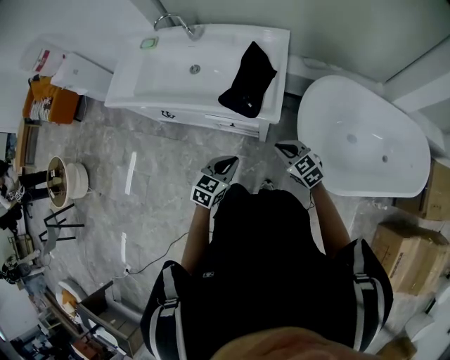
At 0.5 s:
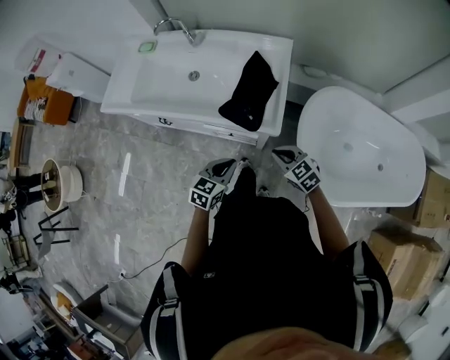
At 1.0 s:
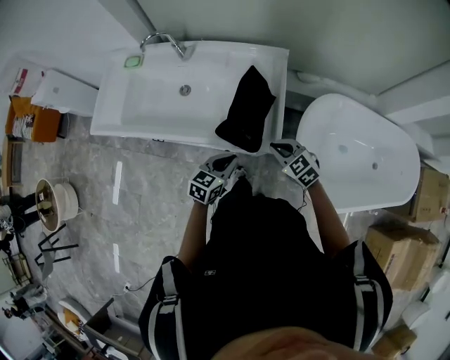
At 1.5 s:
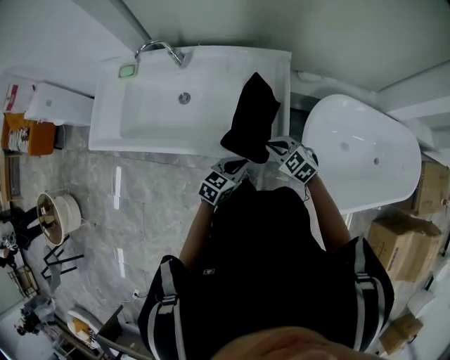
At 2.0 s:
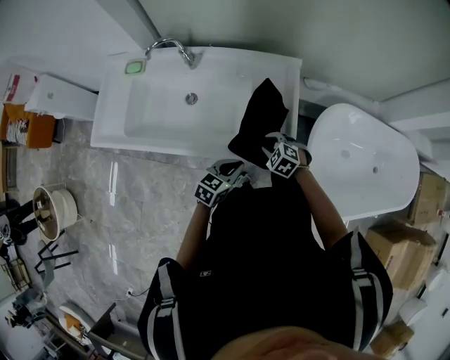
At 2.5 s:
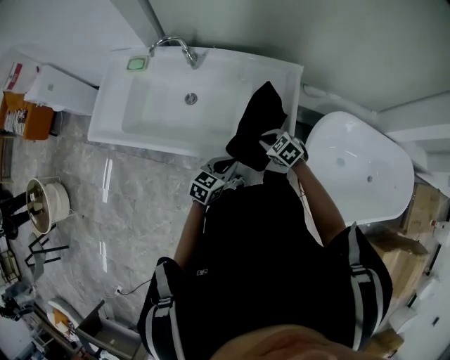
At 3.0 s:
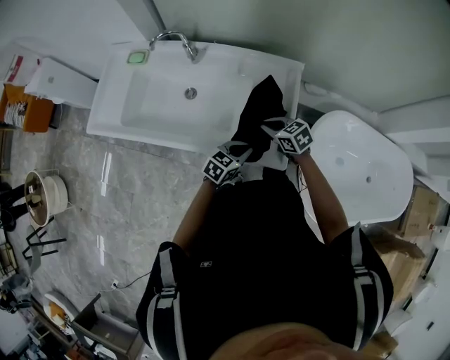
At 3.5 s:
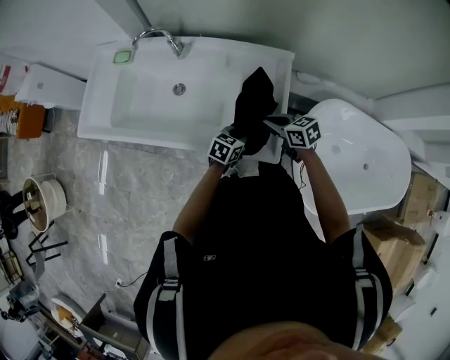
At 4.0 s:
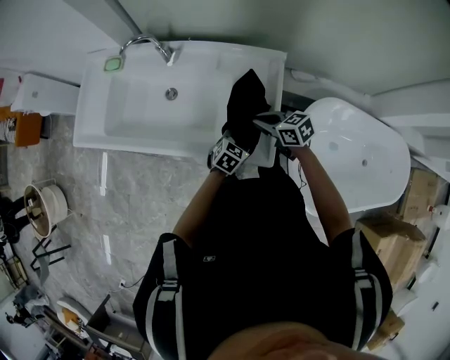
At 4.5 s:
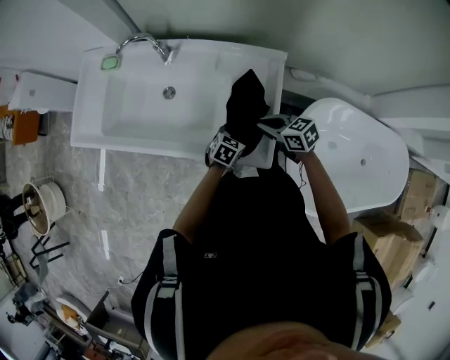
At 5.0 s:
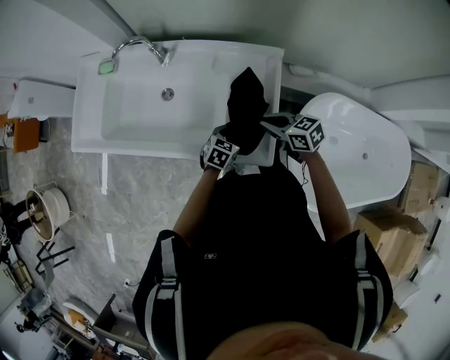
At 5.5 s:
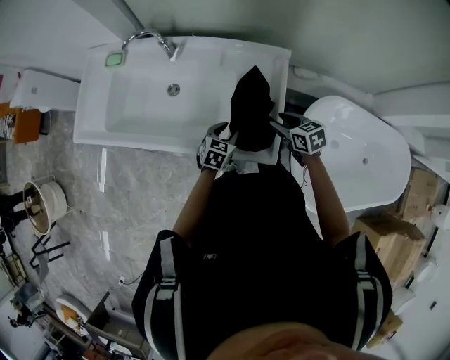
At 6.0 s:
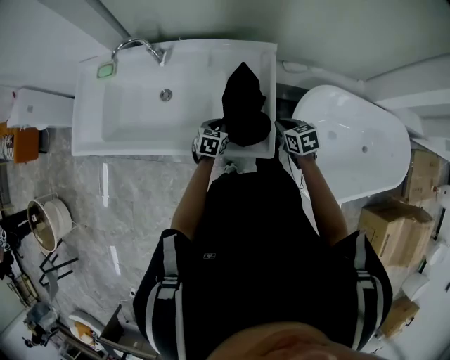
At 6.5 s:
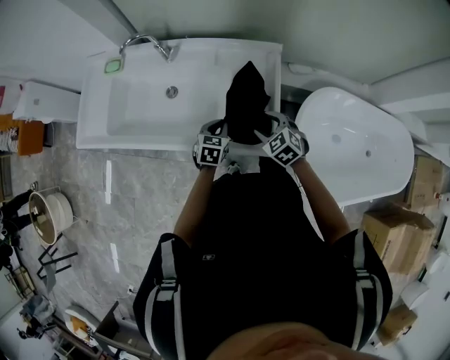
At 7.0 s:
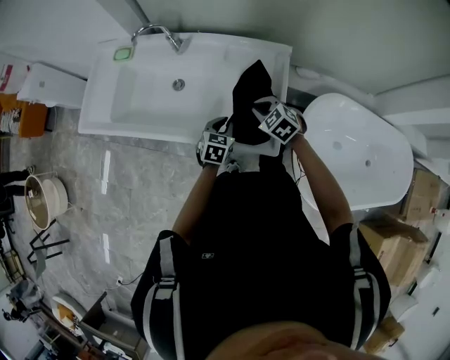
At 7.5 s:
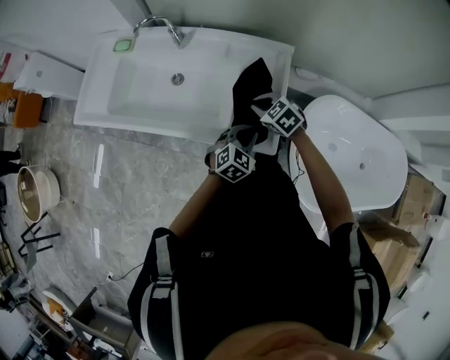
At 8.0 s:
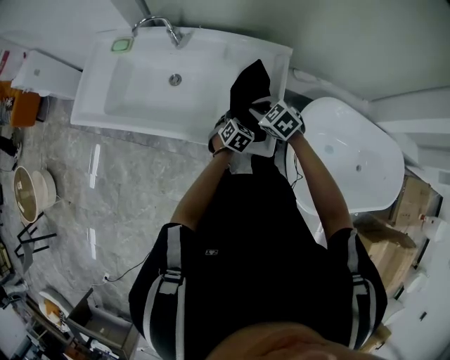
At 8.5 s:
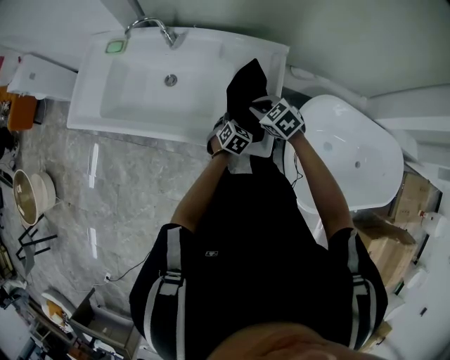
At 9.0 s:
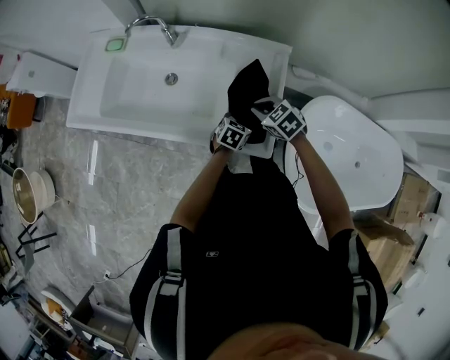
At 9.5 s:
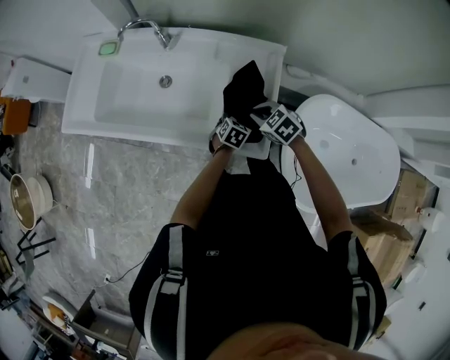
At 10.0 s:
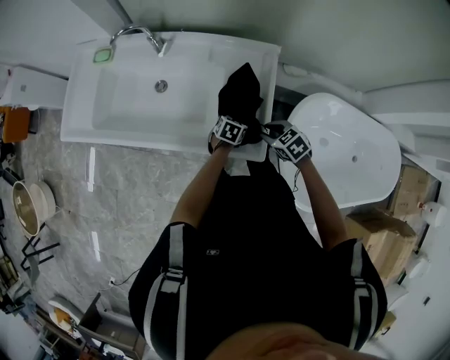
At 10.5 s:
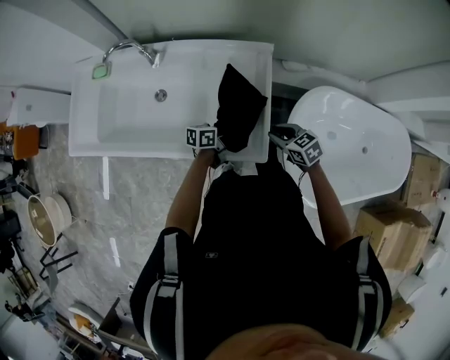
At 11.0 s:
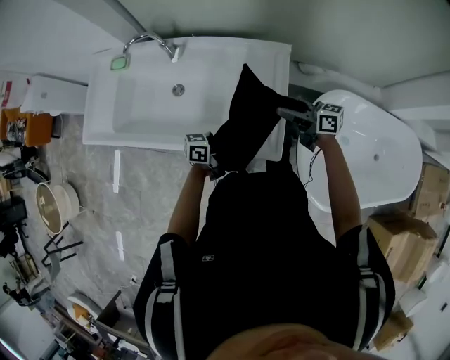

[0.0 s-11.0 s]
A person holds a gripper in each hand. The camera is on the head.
0.0 to 2.0 s: The right gripper is displaced forward, downward and to the left by some 25 cm, turns by roughly 30 degrees, and opens up. Meanwhile the left gripper is displaced forward by roughly 20 cm.
2.0 to 3.5 s: The left gripper travels forward, to the right and downward by some 15 cm. The right gripper moves upward and forward, about 10 cm, swivels some 50 degrees, and closes its fingers.
3.5 to 5.5 s: The right gripper goes about 5 cm to the right, and opens up; the left gripper opens up.
5.5 to 7.5 s: The right gripper moves to the left, about 10 cm, swivels approximately 30 degrees, and closes. Meanwhile the left gripper heads upward, backward and to the right, covering about 10 cm, turns by roughly 20 degrees, and closes up.
7.5 to 9.0 s: The left gripper heads downward and forward, covering about 15 cm, changes its angle by some 30 degrees, and opens.
9.0 to 11.0 s: The left gripper is displaced upward by roughly 15 cm, and angles its fingers upward, by roughly 50 degrees. Meanwhile the right gripper changes place by roughly 10 cm, angles its fingers upward, by some 40 degrees, and opens its fingers.

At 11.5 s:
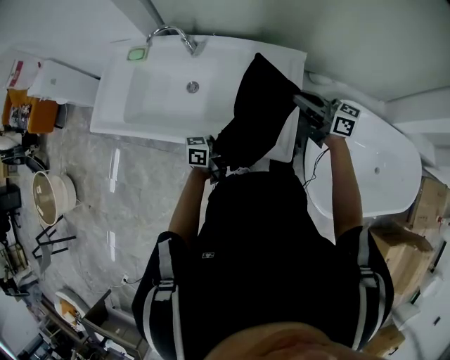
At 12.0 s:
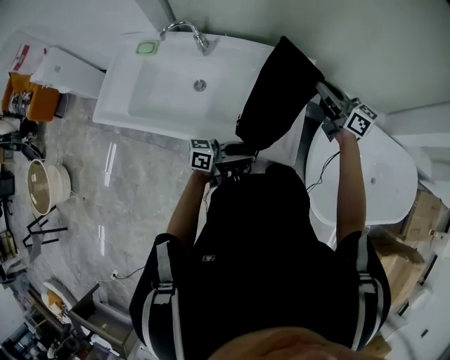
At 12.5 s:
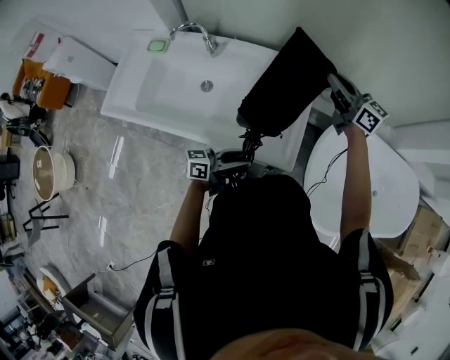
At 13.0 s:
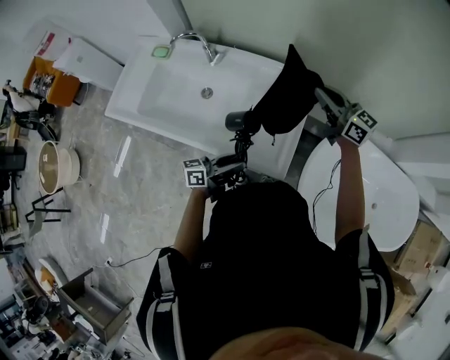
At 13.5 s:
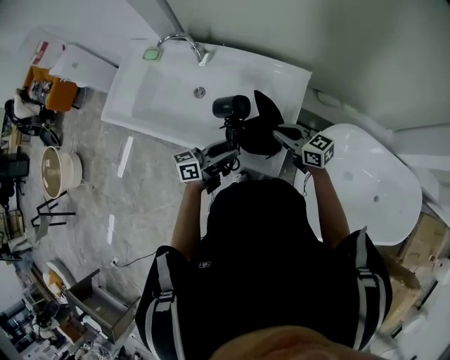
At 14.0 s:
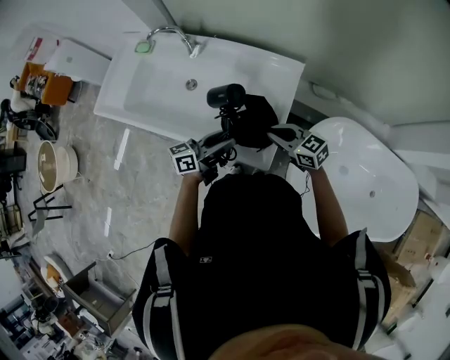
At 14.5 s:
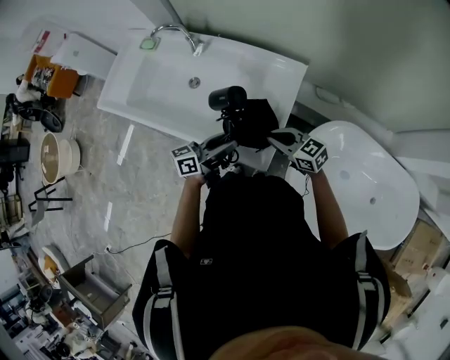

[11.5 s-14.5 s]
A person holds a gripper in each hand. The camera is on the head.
11.5 to 13.0 s: The right gripper shifts by about 10 cm, while the left gripper rotates roughly 20 degrees.
13.0 to 14.5 s: The right gripper heads downward and backward, covering roughly 25 cm, and rotates roughly 30 degrees; the left gripper shifts by about 5 cm.

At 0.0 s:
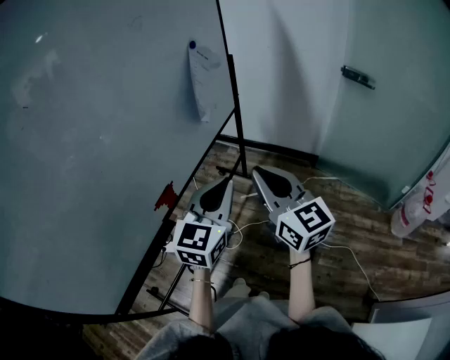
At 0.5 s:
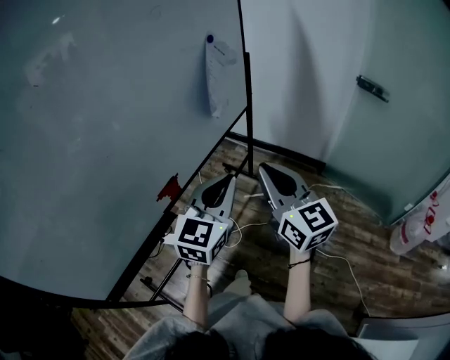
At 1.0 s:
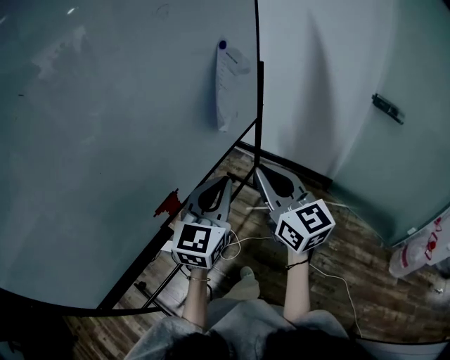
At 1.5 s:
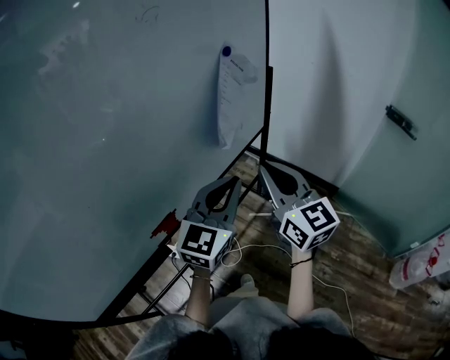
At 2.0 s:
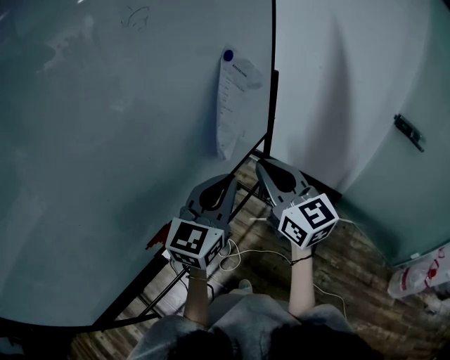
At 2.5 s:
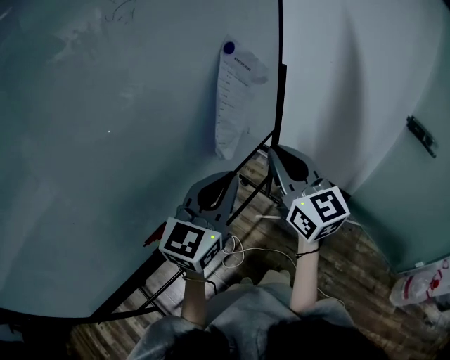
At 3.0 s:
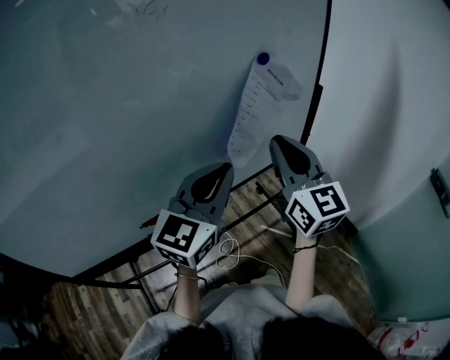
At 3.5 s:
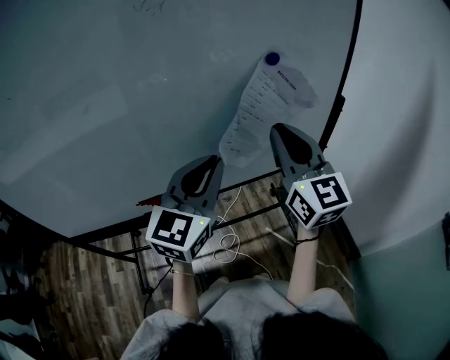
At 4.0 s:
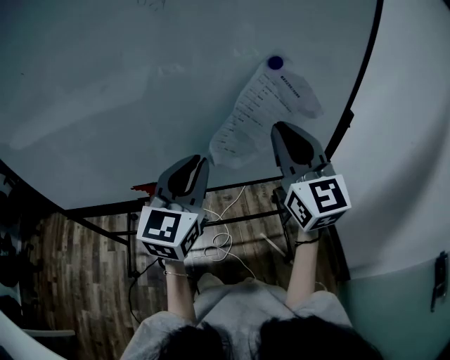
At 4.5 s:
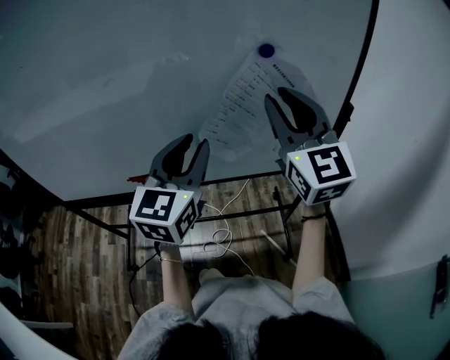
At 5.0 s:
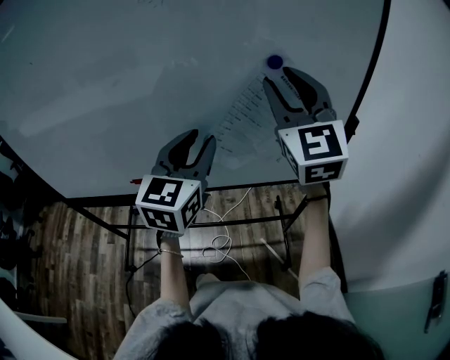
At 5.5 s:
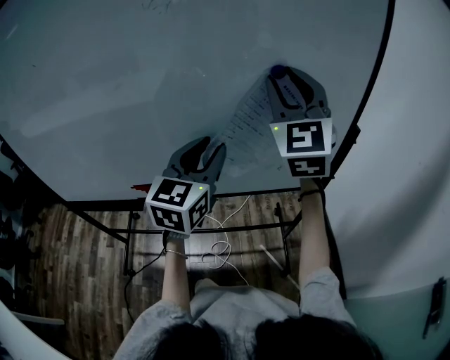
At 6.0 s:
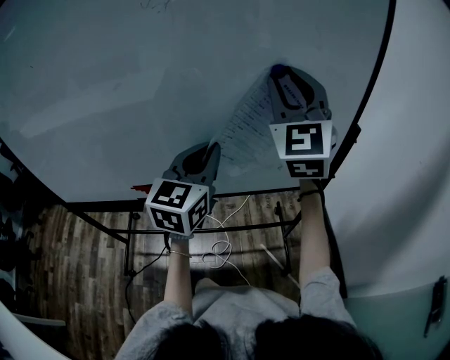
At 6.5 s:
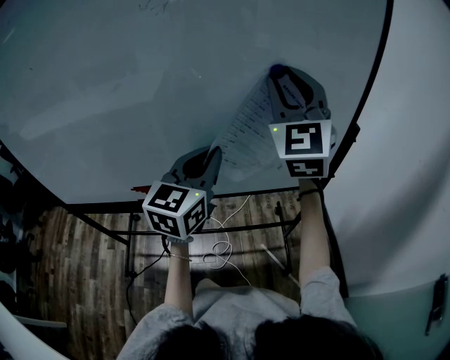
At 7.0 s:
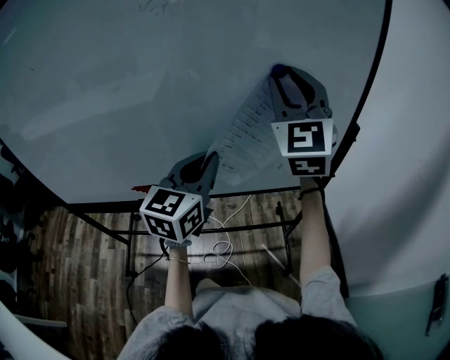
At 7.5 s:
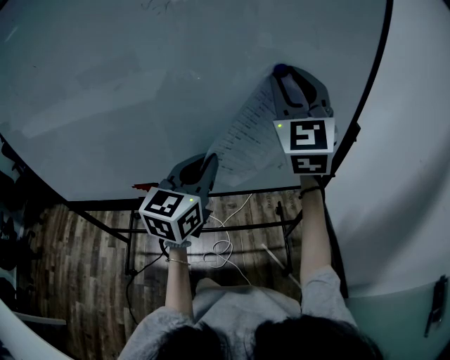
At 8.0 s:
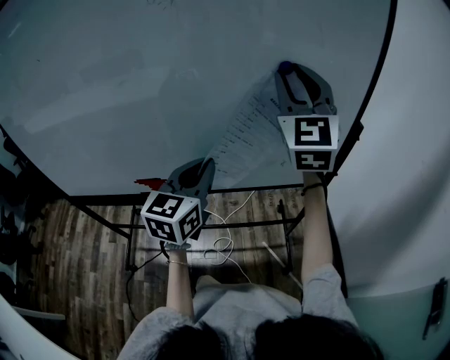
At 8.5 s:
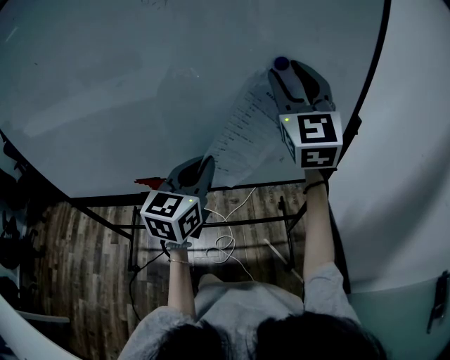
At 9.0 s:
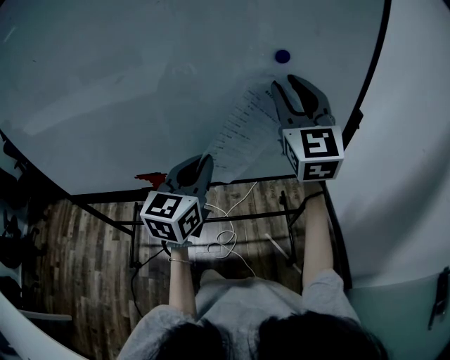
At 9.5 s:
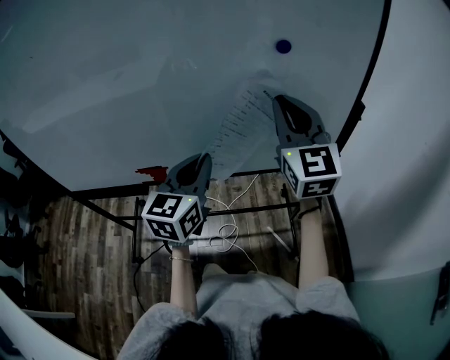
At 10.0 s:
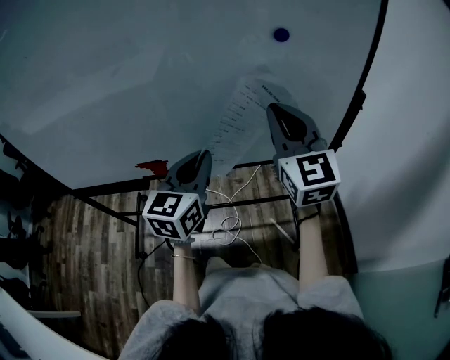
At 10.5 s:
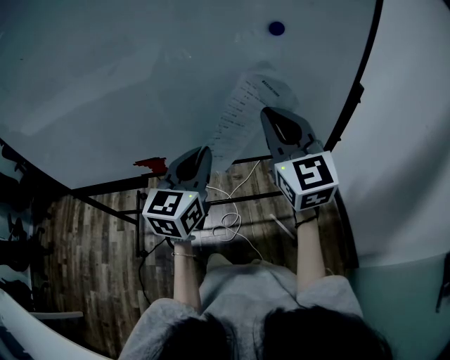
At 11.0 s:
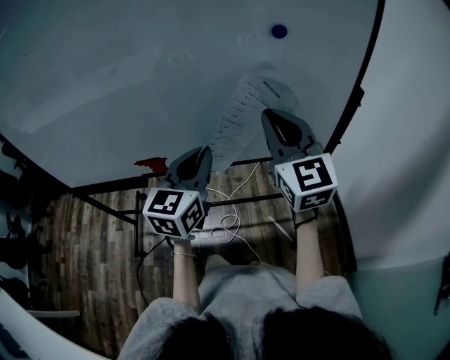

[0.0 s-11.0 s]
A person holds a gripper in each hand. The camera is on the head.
0.0 to 2.0 s: Both grippers travel together forward, approximately 20 cm.
2.0 to 3.5 s: The right gripper changes place by approximately 15 cm, and rotates approximately 30 degrees. Meanwhile the left gripper shifts by approximately 5 cm, and swivels about 40 degrees.
3.5 to 5.5 s: The left gripper goes approximately 5 cm forward, and opens its fingers; the right gripper heads upward and forward, covering about 15 cm, swivels approximately 30 degrees, and opens.
5.5 to 7.5 s: The left gripper moves approximately 5 cm, and closes up.
7.5 to 9.0 s: The grippers stay close to where they were, moving slightly.
9.0 to 11.0 s: The right gripper goes roughly 5 cm downward, and closes its fingers.

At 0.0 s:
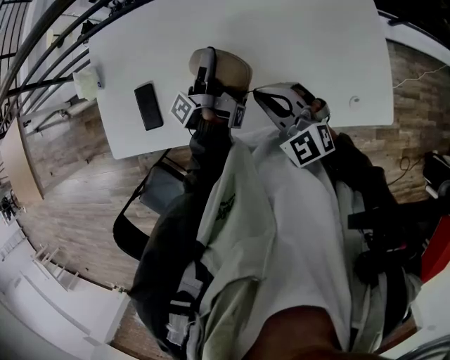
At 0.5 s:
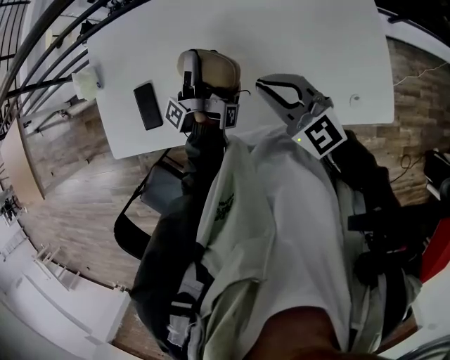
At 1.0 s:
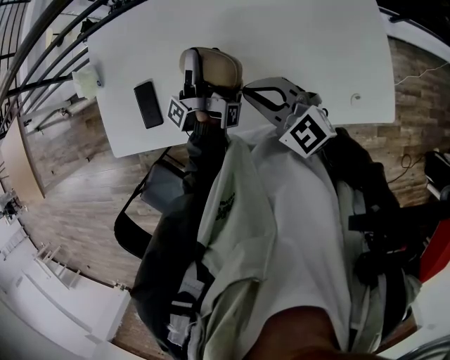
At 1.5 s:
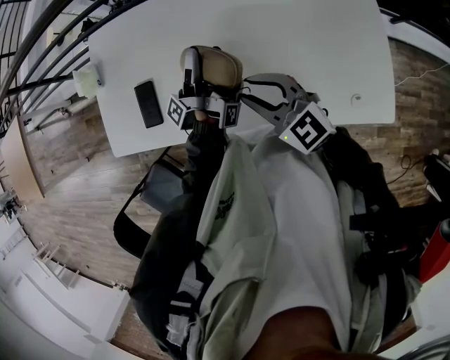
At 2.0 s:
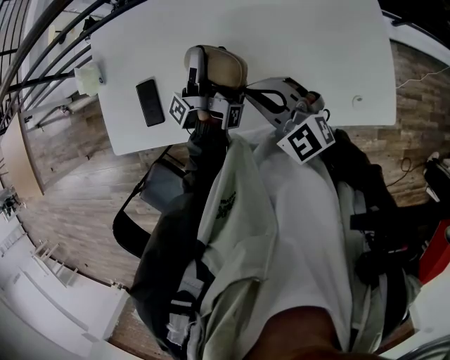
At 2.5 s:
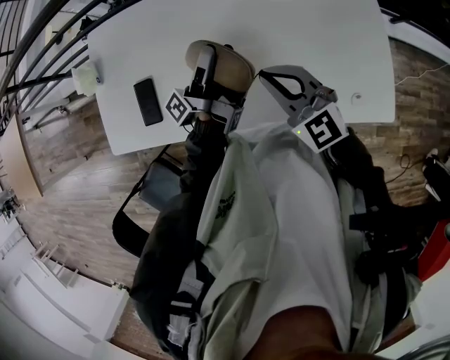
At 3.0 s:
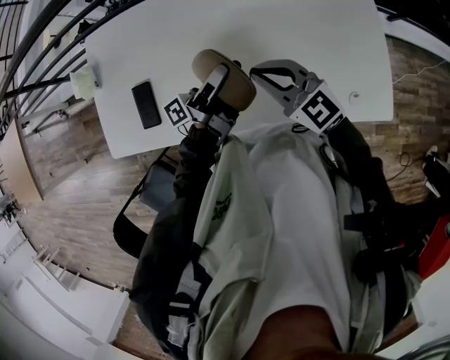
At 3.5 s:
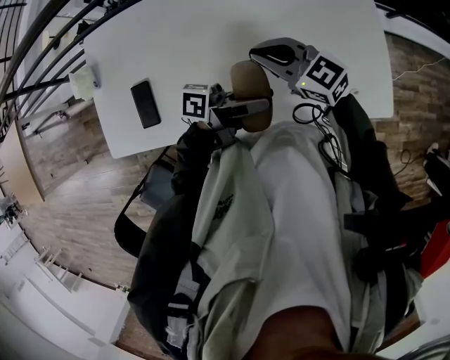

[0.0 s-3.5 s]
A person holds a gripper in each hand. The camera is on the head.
0.0 to 2.0 s: The right gripper opens and closes again.
2.0 to 3.5 s: The right gripper shifts by some 10 cm, and changes its angle by roughly 30 degrees.
